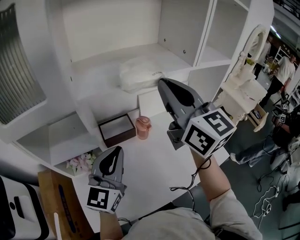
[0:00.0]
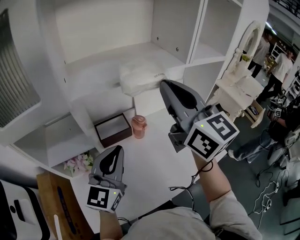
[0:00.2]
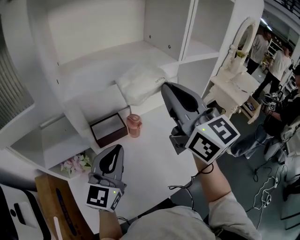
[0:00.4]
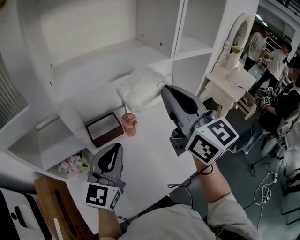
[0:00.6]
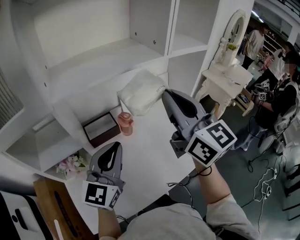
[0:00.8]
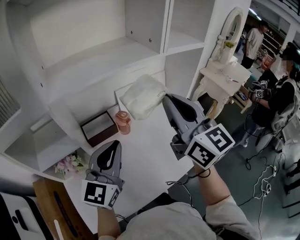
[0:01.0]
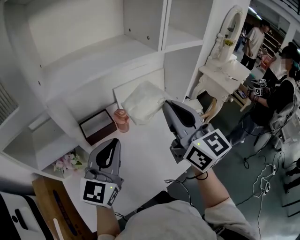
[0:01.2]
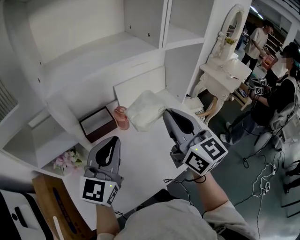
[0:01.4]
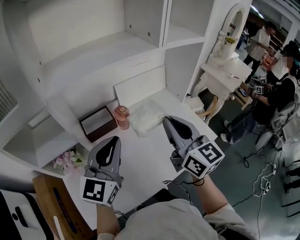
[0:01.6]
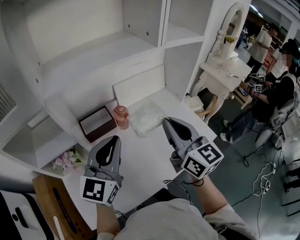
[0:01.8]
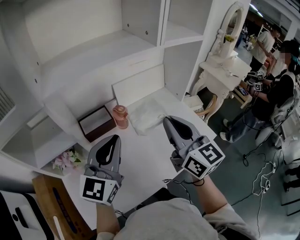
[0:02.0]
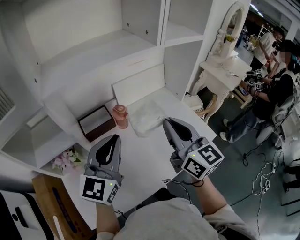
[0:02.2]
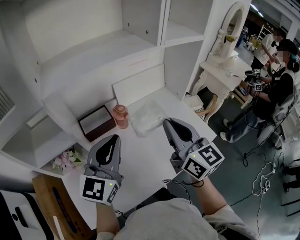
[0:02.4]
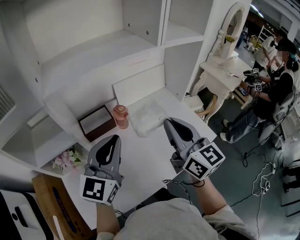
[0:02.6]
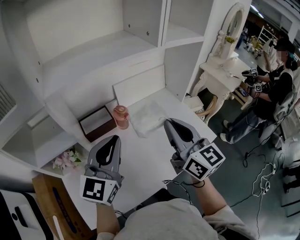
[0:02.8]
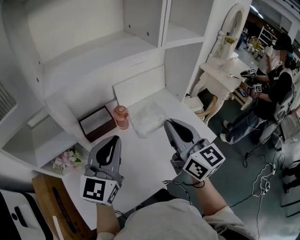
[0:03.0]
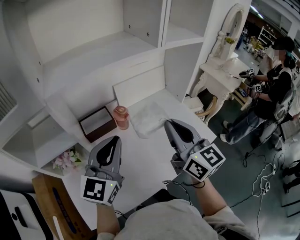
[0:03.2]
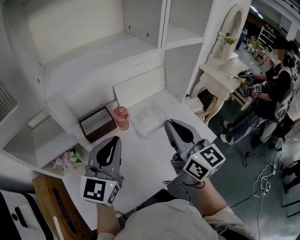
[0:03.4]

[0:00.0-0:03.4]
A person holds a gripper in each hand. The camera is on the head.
0:00.0 to 0:01.6: The left gripper is displaced to the right by about 10 cm, while the right gripper shifts approximately 20 cm downward, to the right and backward.
0:01.6 to 0:03.4: Both grippers stay about where they are.

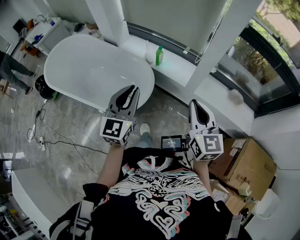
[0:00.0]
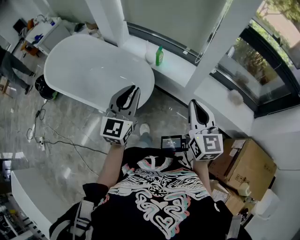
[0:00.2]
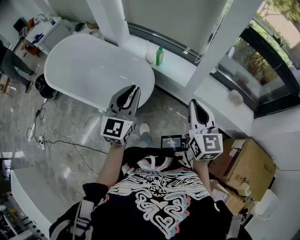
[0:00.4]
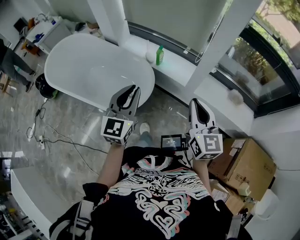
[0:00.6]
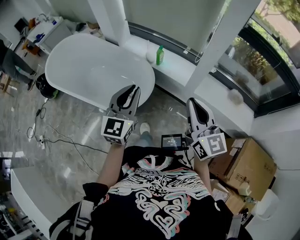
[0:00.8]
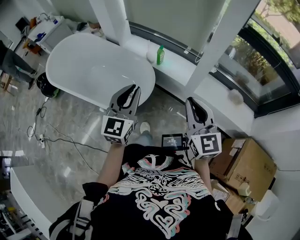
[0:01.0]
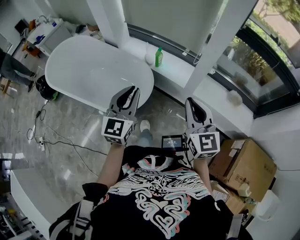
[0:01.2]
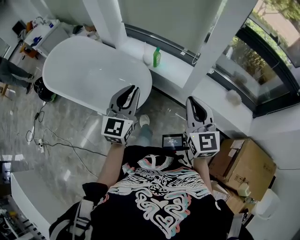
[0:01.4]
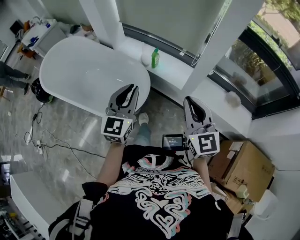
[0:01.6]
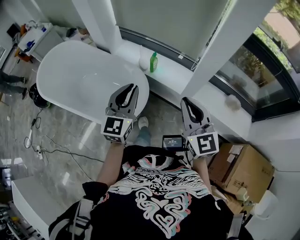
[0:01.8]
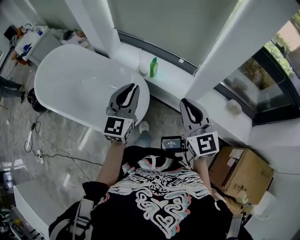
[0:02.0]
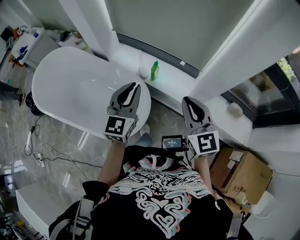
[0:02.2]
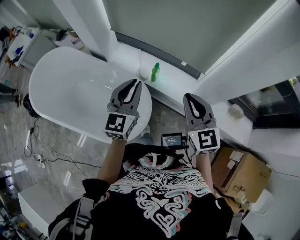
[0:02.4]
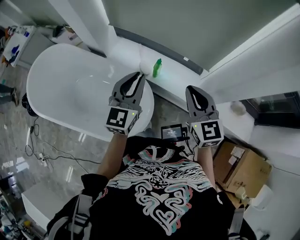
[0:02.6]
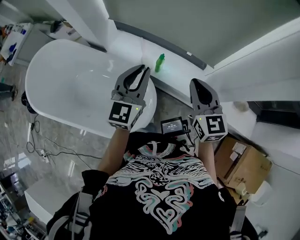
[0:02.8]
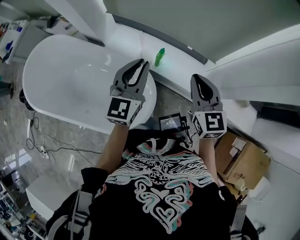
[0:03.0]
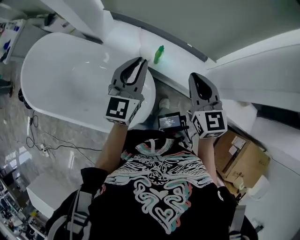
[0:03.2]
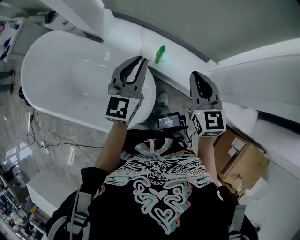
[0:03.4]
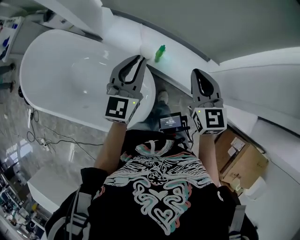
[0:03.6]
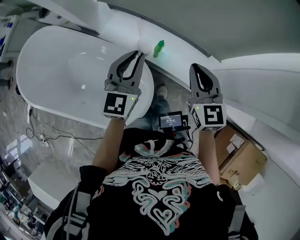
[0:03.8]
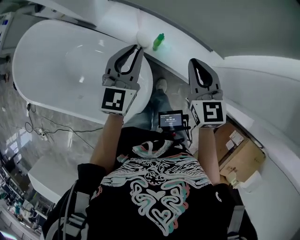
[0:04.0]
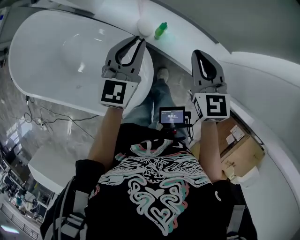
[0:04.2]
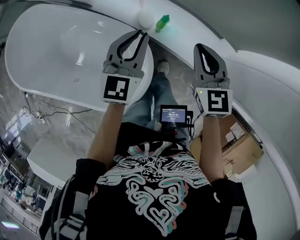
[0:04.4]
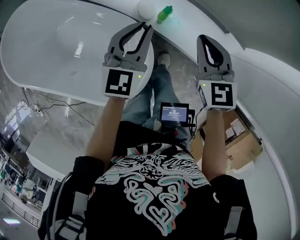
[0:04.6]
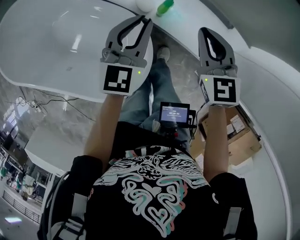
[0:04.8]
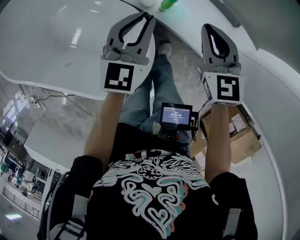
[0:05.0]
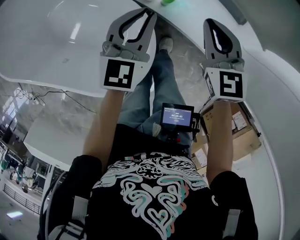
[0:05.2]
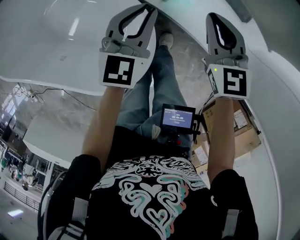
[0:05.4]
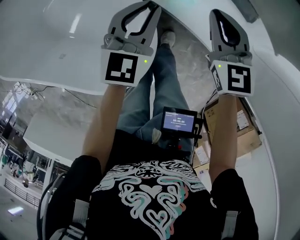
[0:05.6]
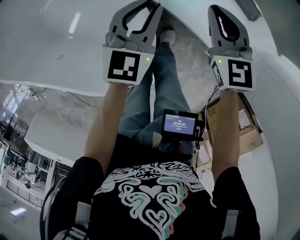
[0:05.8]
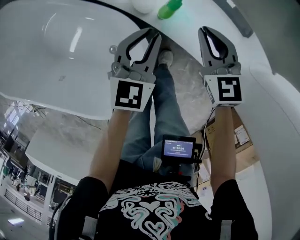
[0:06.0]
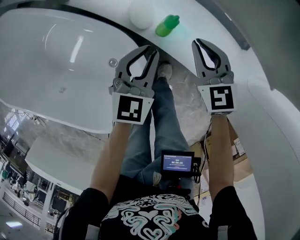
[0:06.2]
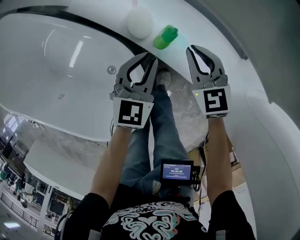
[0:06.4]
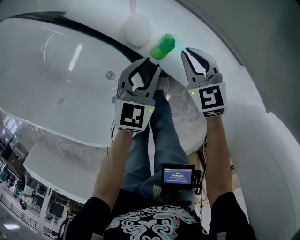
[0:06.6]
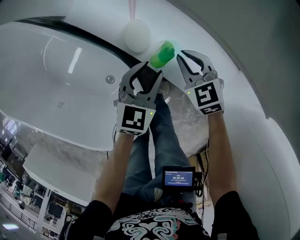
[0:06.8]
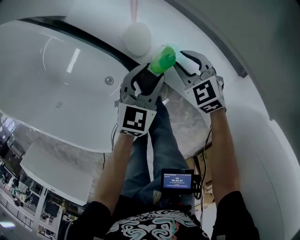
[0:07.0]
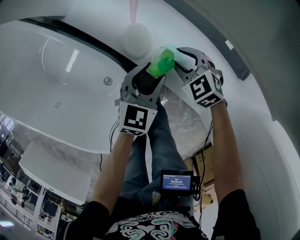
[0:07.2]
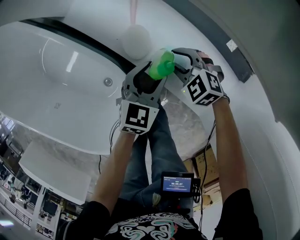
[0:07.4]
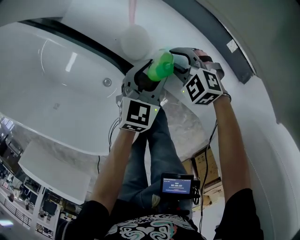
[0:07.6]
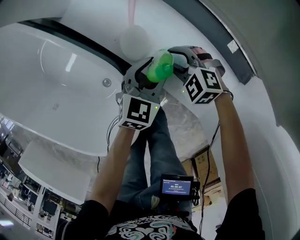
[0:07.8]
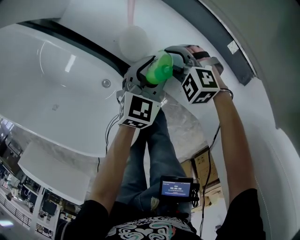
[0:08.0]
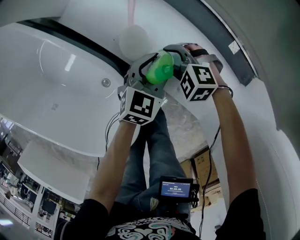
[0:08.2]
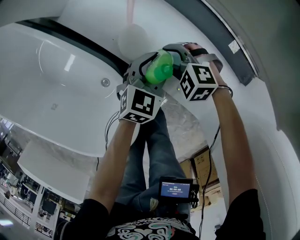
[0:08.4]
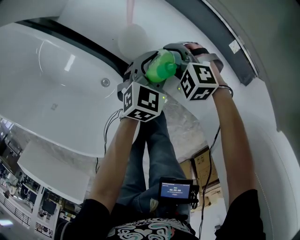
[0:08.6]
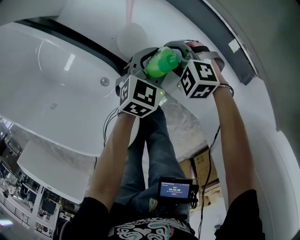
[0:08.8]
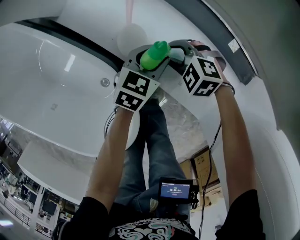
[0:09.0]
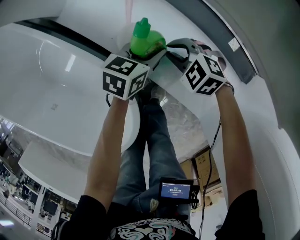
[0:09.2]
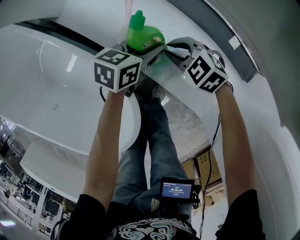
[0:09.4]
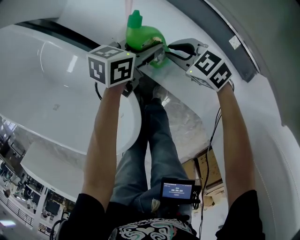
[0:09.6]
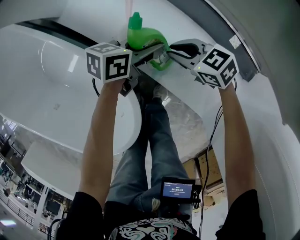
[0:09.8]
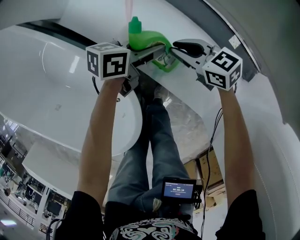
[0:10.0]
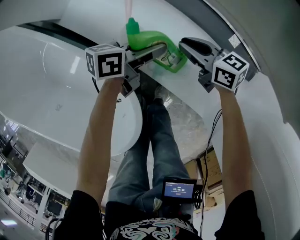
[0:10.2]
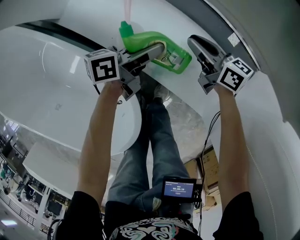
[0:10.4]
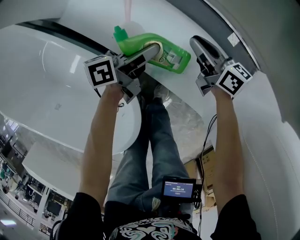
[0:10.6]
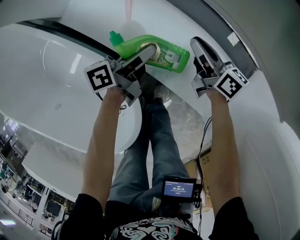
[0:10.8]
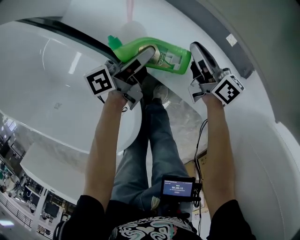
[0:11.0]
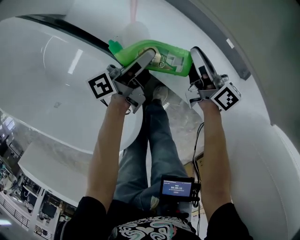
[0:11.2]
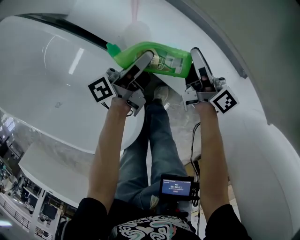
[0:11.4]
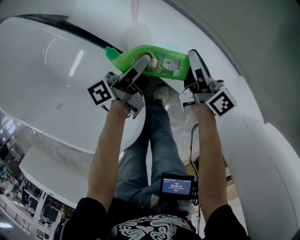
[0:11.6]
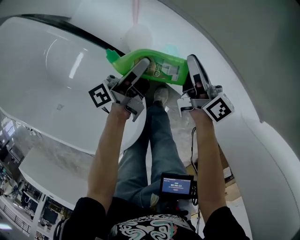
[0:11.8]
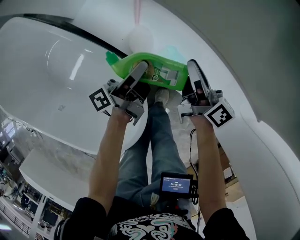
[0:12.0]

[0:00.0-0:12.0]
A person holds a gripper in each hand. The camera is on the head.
0:00.0 to 0:01.6: The left gripper changes place by some 5 cm.
0:01.6 to 0:03.0: The two grippers go about 35 cm forward.
0:03.0 to 0:04.4: The grippers both shift downward and forward by approximately 20 cm.
0:04.4 to 0:06.0: The grippers both shift downward by some 20 cm.
0:06.0 to 0:07.6: The right gripper is displaced downward and forward by approximately 20 cm, turns by approximately 50 degrees, and opens; the left gripper heads downward, forward and to the right, covering about 15 cm, and opens up.
0:07.6 to 0:09.0: The left gripper shifts by approximately 5 cm.
0:09.0 to 0:10.4: The left gripper rotates roughly 50 degrees, while the right gripper moves some 10 cm, rotates around the line of its fingers by some 70 degrees, clockwise from behind, and closes.
0:10.4 to 0:12.0: The right gripper goes about 5 cm upward, and rotates approximately 30 degrees. The left gripper shifts by about 5 cm, and changes its angle by some 40 degrees.

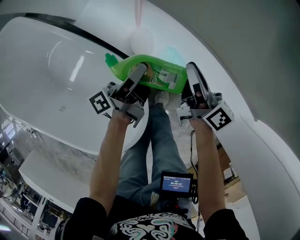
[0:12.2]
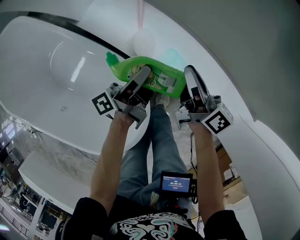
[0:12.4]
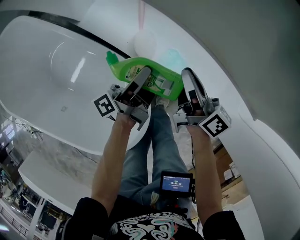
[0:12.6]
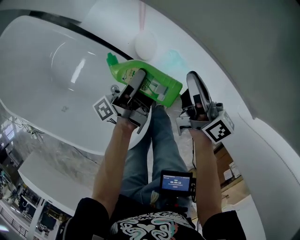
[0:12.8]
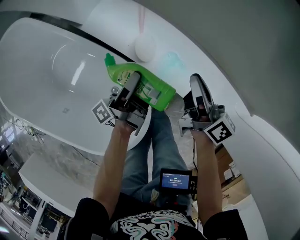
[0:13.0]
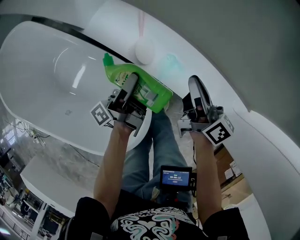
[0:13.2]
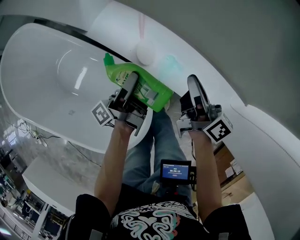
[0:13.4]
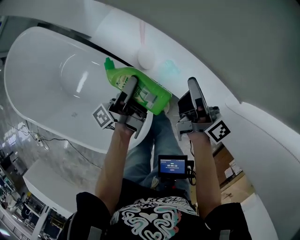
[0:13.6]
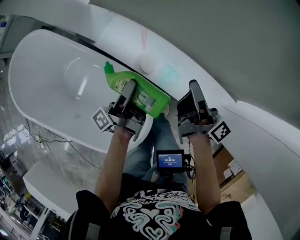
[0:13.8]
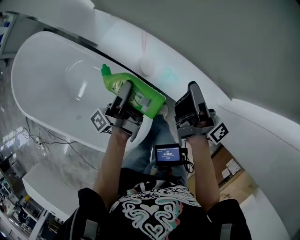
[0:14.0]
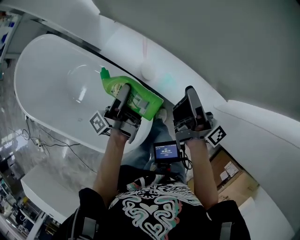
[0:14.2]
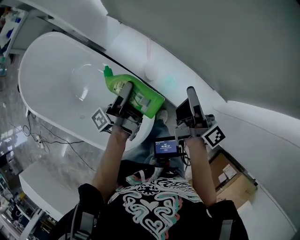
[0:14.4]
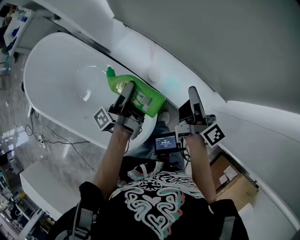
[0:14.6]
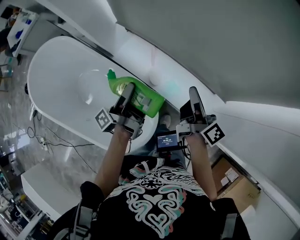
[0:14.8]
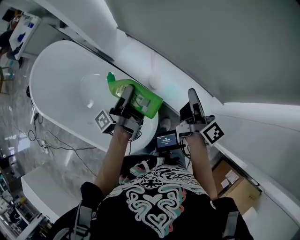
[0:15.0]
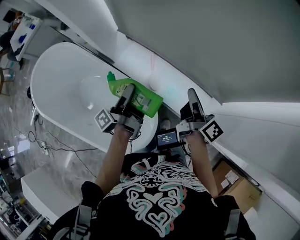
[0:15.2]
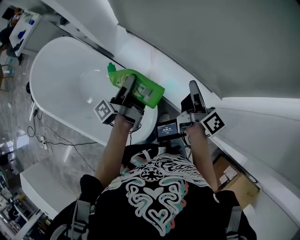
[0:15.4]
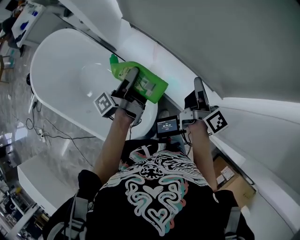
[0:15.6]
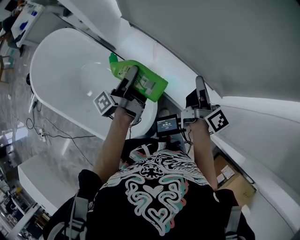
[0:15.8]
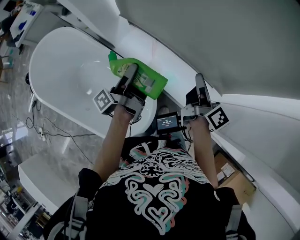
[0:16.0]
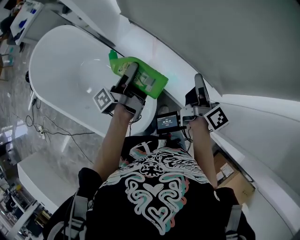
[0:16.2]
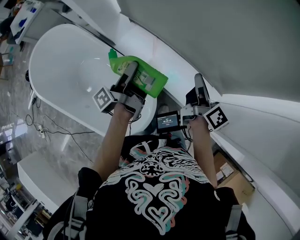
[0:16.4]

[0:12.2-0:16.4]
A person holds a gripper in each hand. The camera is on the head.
0:12.2 to 0:13.6: There are only small adjustments of the grippers.
0:13.6 to 0:15.0: The grippers make only small movements.
0:15.0 to 0:16.4: There are only small adjustments of the grippers.

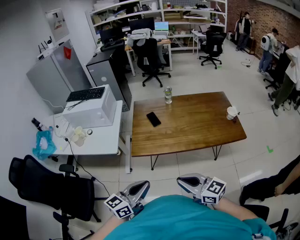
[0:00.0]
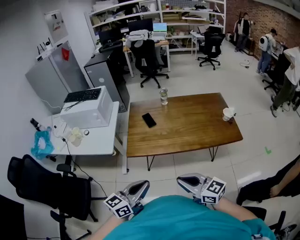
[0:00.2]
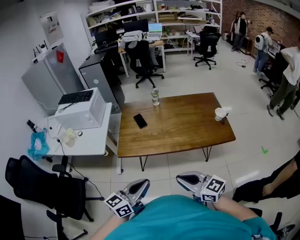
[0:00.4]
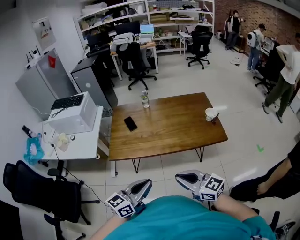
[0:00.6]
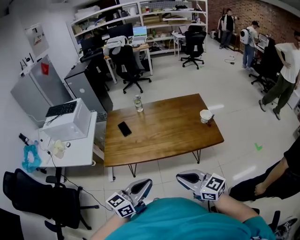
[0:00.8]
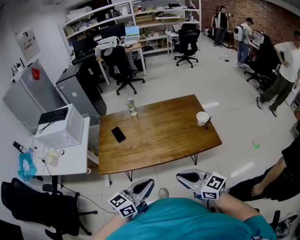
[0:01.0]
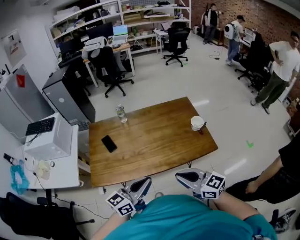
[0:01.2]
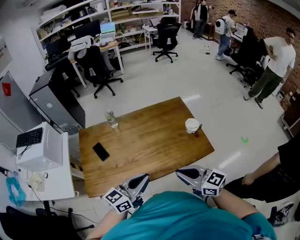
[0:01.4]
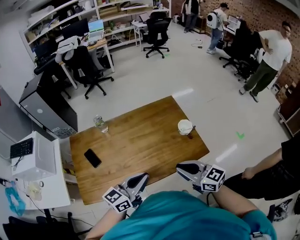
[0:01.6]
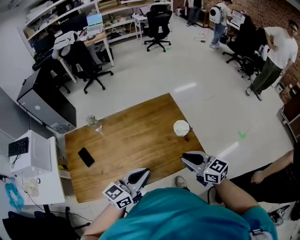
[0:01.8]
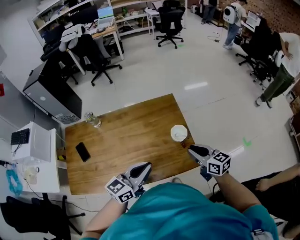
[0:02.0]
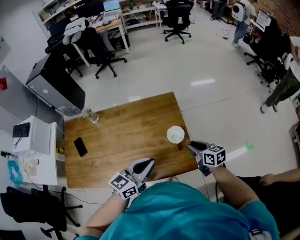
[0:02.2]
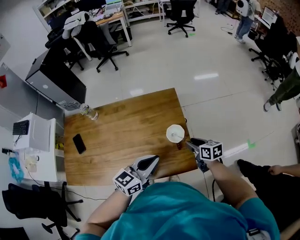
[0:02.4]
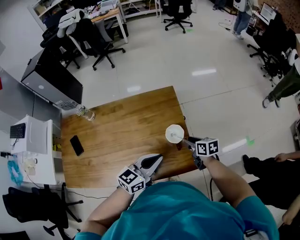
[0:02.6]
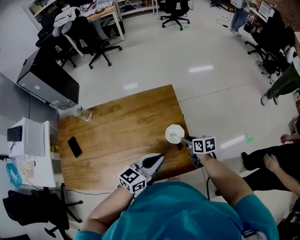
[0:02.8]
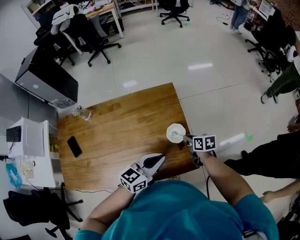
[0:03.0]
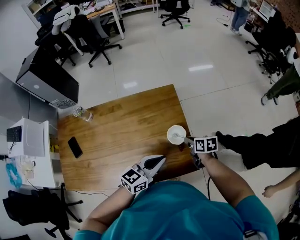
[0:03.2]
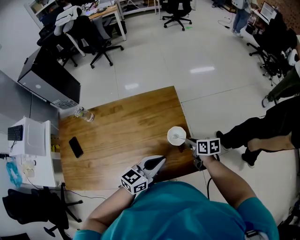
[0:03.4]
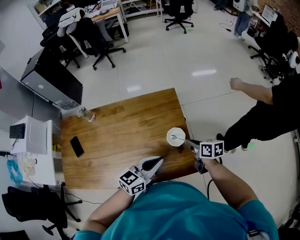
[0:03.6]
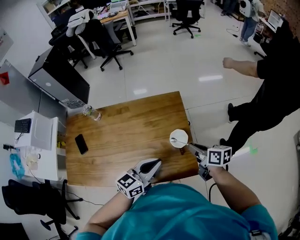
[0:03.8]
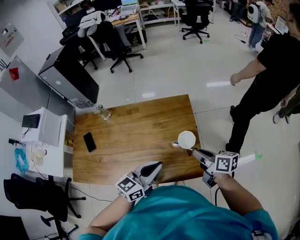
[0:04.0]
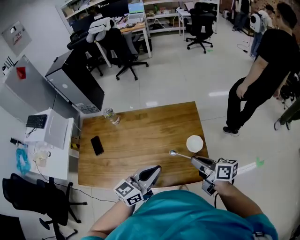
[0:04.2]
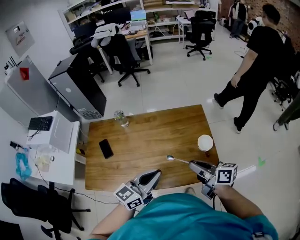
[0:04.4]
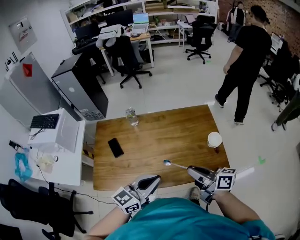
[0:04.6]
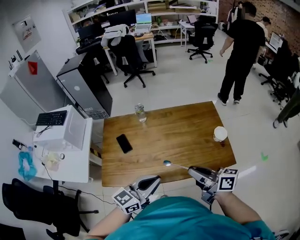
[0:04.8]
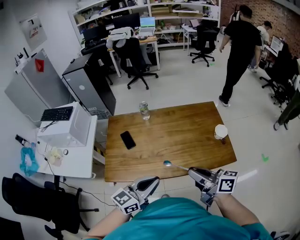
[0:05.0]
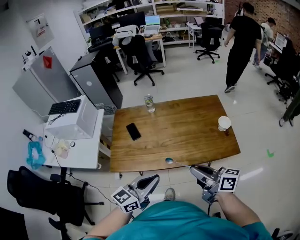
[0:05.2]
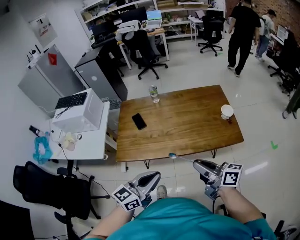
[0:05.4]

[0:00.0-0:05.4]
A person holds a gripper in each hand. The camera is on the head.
0:00.0 to 0:01.4: The grippers both shift forward and to the right by about 40 cm.
0:01.4 to 0:02.8: The pair of grippers is taken forward and to the right, roughly 50 cm. The right gripper travels downward by about 25 cm, tilts its fingers approximately 30 degrees downward, and opens its fingers.
0:02.8 to 0:04.0: The left gripper shifts roughly 10 cm backward and upward. Meanwhile the right gripper heads upward and backward, covering some 20 cm, turns by some 30 degrees, and closes.
0:04.0 to 0:05.4: Both grippers are carried backward and to the left, about 50 cm. The right gripper changes its angle by roughly 20 degrees.
